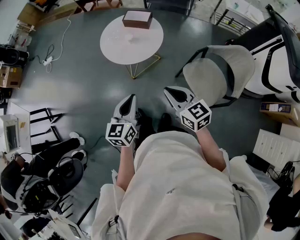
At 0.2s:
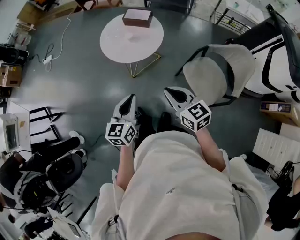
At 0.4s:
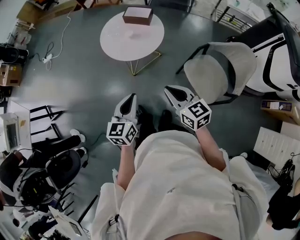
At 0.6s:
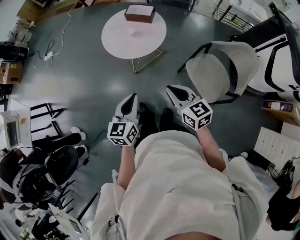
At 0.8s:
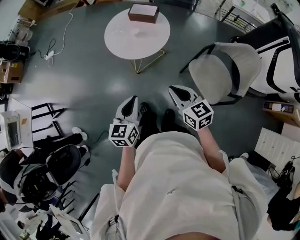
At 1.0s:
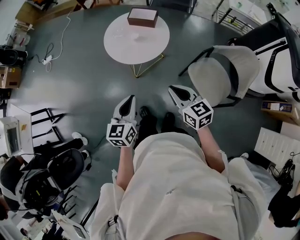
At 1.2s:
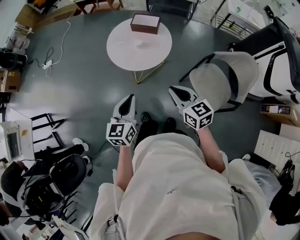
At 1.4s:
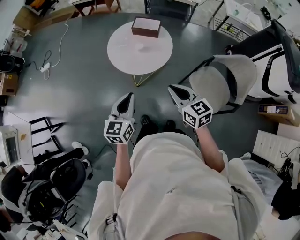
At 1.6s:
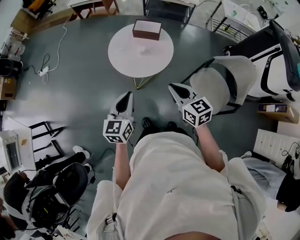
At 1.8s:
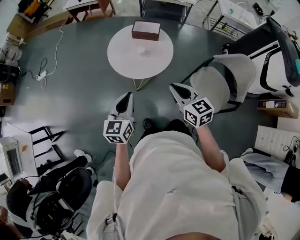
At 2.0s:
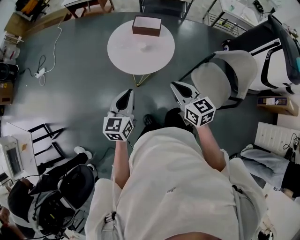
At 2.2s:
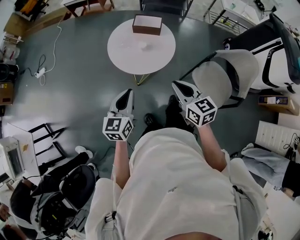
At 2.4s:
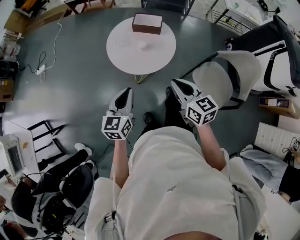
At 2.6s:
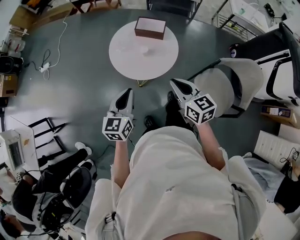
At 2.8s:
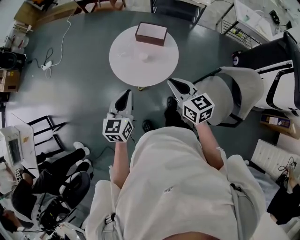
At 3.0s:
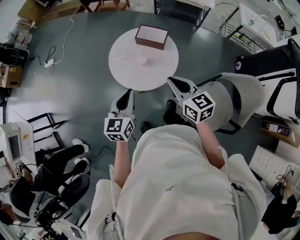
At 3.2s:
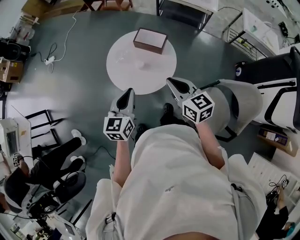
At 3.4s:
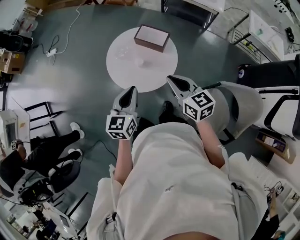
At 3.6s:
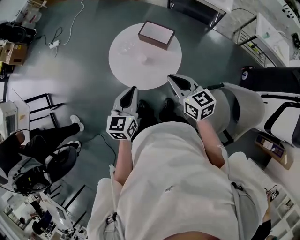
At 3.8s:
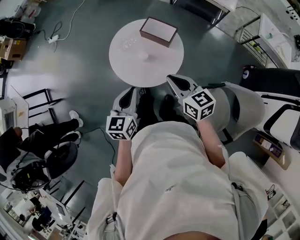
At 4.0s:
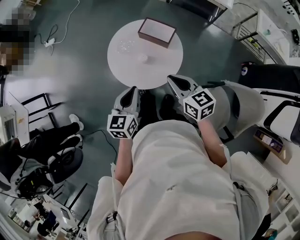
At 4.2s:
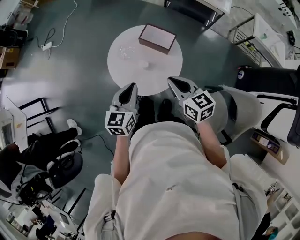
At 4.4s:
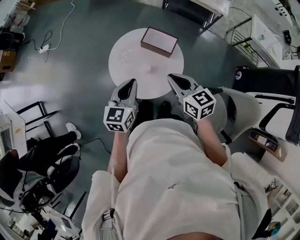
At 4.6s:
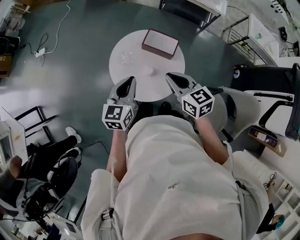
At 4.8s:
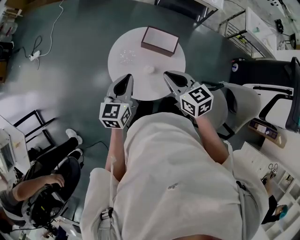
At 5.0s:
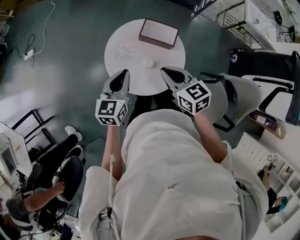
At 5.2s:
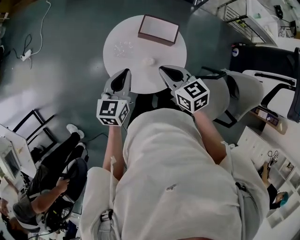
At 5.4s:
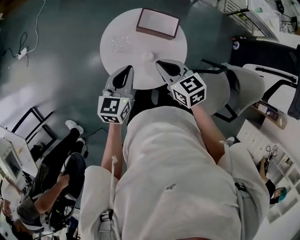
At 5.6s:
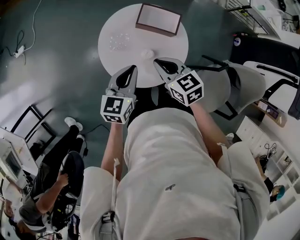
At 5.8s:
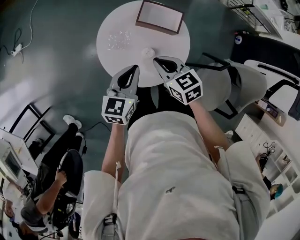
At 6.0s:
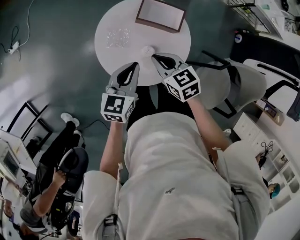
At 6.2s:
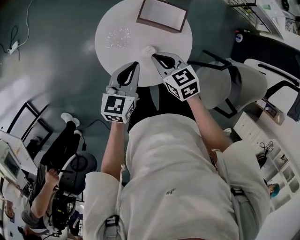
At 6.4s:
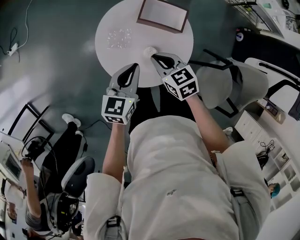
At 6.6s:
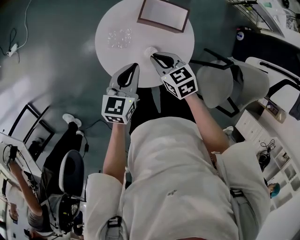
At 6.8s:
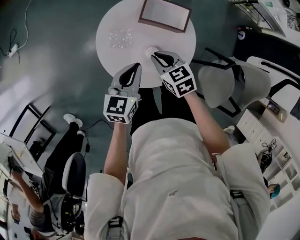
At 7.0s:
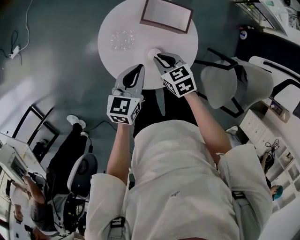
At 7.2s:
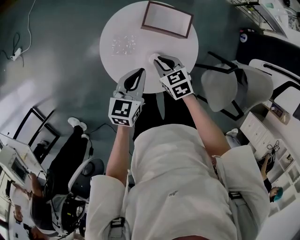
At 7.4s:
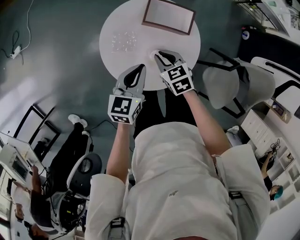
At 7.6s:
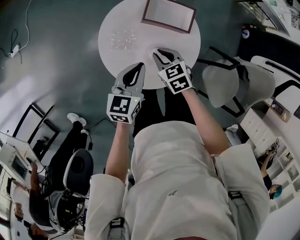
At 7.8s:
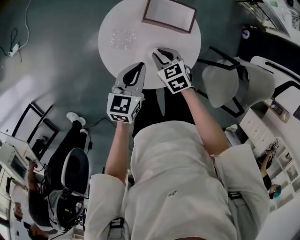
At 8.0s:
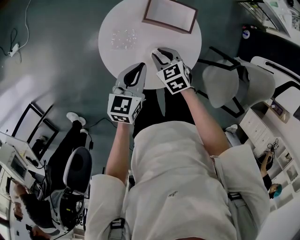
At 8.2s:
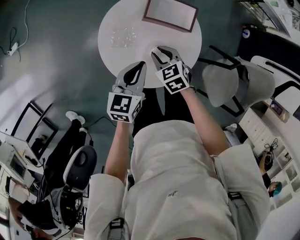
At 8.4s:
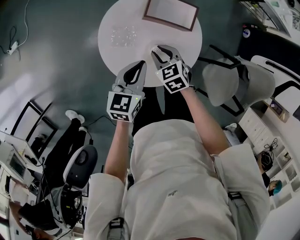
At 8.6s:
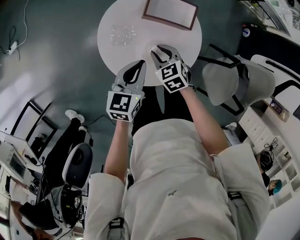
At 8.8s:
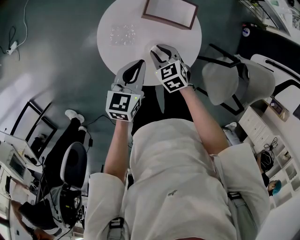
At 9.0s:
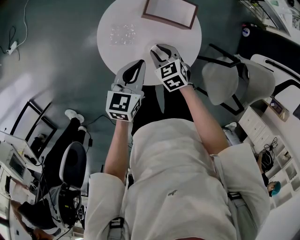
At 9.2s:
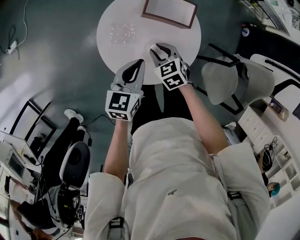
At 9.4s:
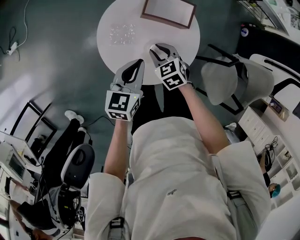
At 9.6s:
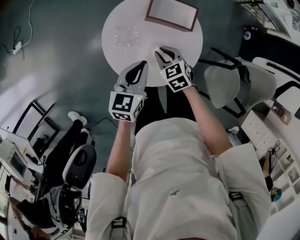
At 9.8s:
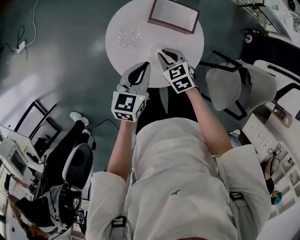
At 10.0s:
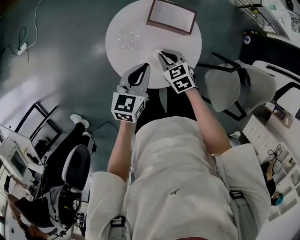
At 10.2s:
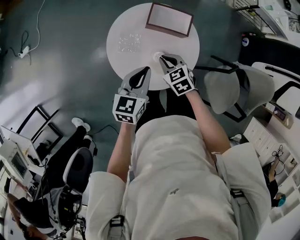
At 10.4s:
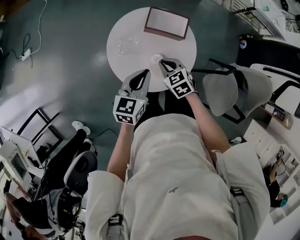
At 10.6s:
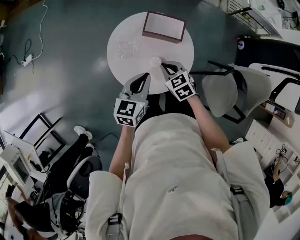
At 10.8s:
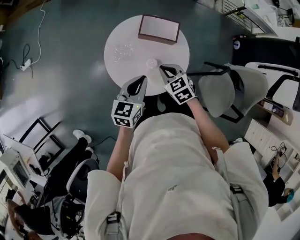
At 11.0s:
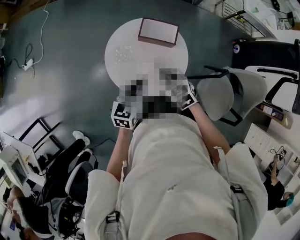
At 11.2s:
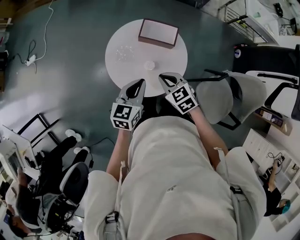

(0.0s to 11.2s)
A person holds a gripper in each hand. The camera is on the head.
0.0s - 1.6s: Both grippers move forward and to the left, roughly 15 cm.
1.6s - 3.2s: The grippers both shift forward and to the right by some 20 cm.
3.2s - 4.8s: The left gripper goes roughly 15 cm forward. The right gripper travels forward and to the left by about 15 cm.
4.8s - 6.4s: The left gripper heads downward, covering roughly 10 cm. Meanwhile the right gripper goes about 15 cm downward.
6.4s - 8.0s: The right gripper shifts approximately 10 cm downward.
8.0s - 9.6s: The grippers make only small movements.
9.6s - 11.2s: The right gripper travels upward and backward by approximately 15 cm. Meanwhile the left gripper travels upward and backward by approximately 10 cm.

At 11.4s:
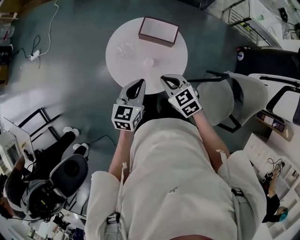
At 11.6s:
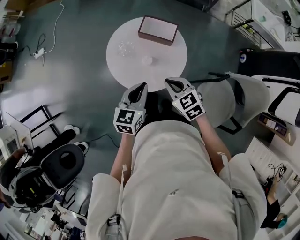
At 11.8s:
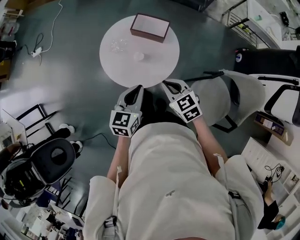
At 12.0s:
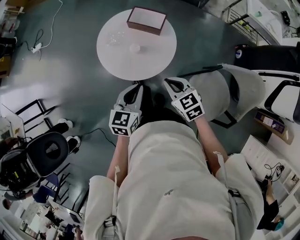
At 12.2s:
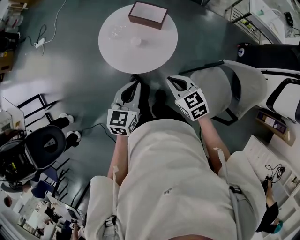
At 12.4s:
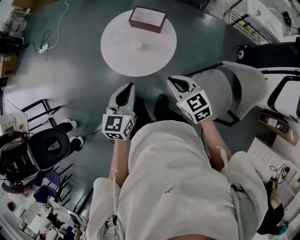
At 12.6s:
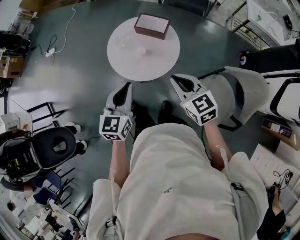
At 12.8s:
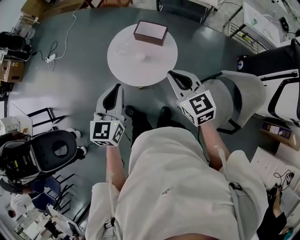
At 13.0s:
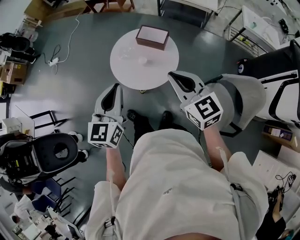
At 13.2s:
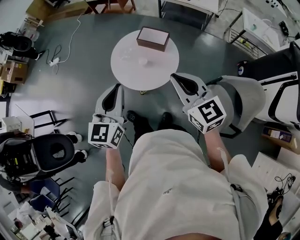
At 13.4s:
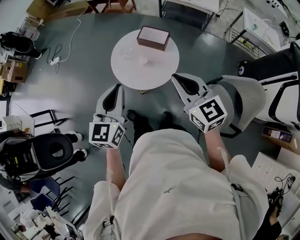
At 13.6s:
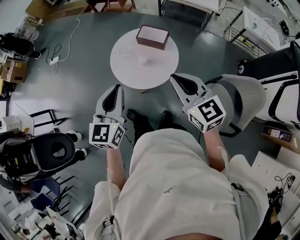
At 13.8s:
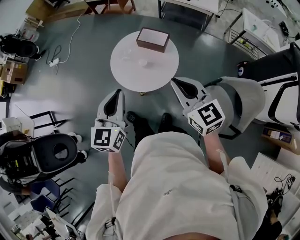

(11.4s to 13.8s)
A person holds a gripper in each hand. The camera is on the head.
11.4s - 12.6s: The right gripper moves backward, upward and to the right, about 20 cm; the left gripper shifts approximately 20 cm backward and upward.
12.6s - 13.8s: The grippers both shift upward by some 10 cm.

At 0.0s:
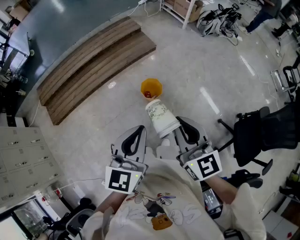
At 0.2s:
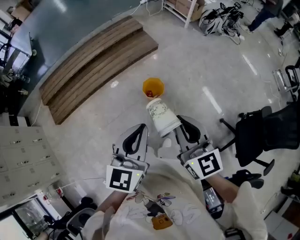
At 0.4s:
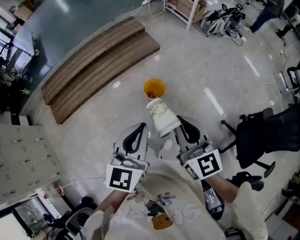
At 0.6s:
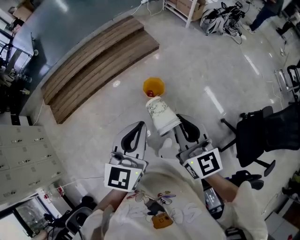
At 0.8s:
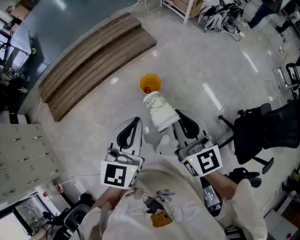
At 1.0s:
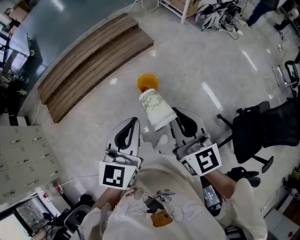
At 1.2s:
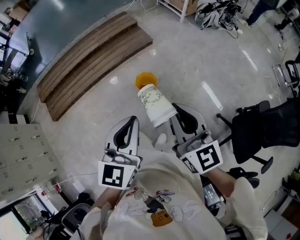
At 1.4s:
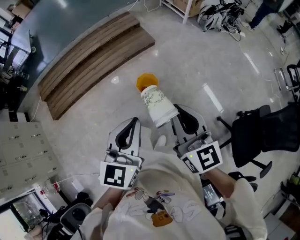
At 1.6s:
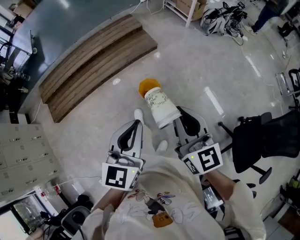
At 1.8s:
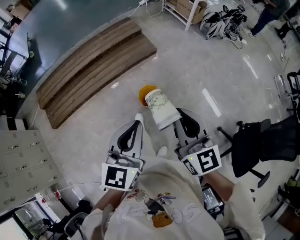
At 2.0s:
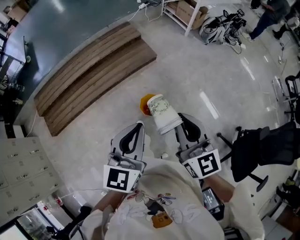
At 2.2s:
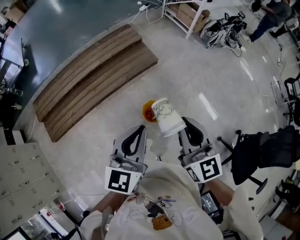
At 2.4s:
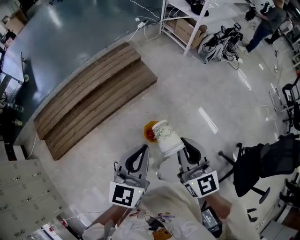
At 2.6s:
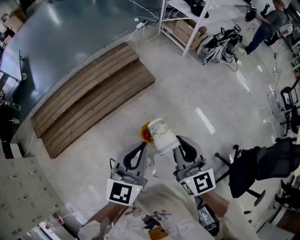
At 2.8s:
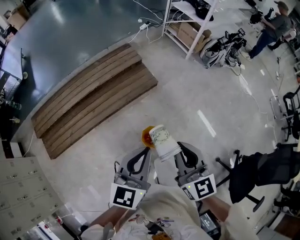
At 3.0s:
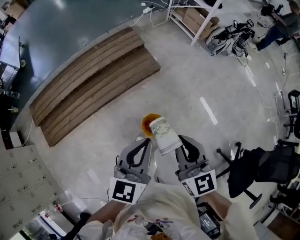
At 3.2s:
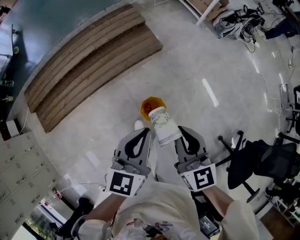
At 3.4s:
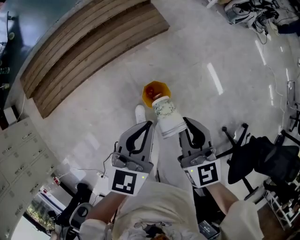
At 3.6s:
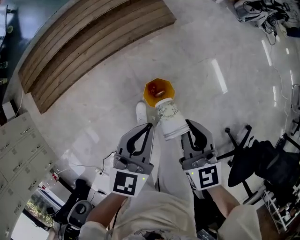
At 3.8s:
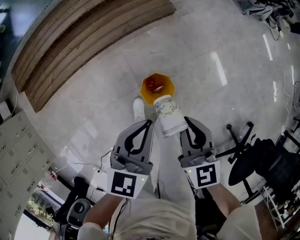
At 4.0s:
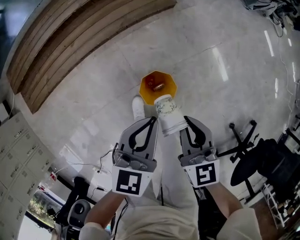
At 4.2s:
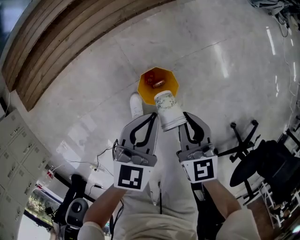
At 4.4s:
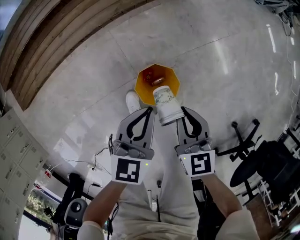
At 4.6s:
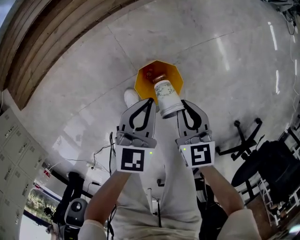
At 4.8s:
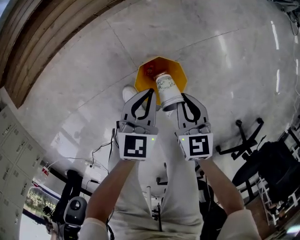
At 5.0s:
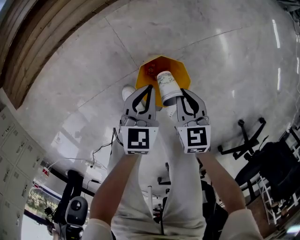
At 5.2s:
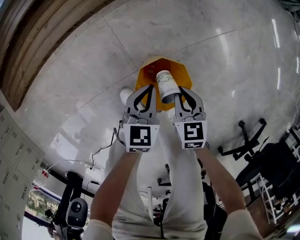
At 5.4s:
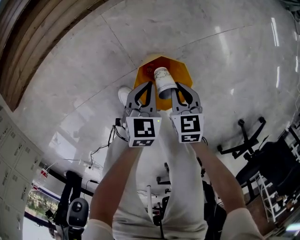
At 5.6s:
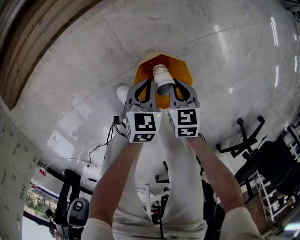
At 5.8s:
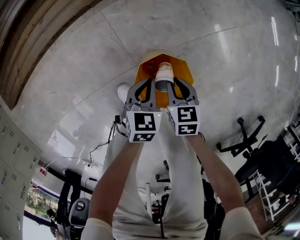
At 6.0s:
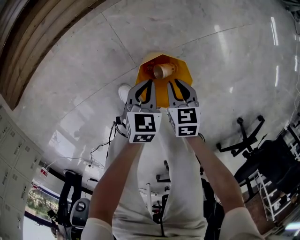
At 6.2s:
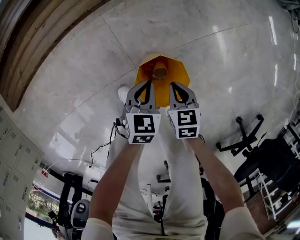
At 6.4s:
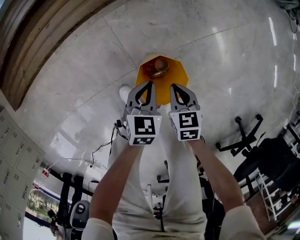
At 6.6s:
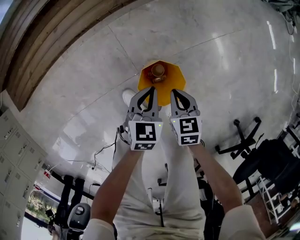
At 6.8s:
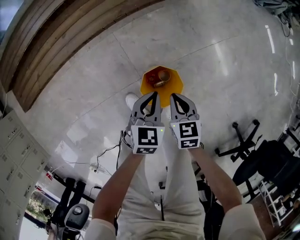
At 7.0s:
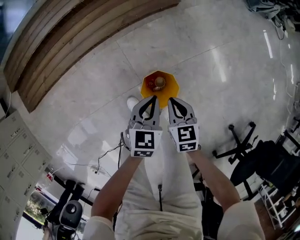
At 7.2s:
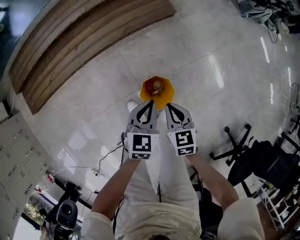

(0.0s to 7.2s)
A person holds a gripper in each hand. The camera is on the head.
0.0s - 1.4s: The two grippers go some 10 cm to the right.
1.4s - 2.8s: The grippers both shift forward by approximately 35 cm.
2.8s - 4.4s: Both grippers move downward, roughly 60 cm. The left gripper changes its angle by roughly 20 degrees; the right gripper rotates roughly 30 degrees.
4.4s - 5.8s: The grippers both shift downward by approximately 30 cm. The right gripper turns by some 20 degrees.
5.8s - 7.2s: Both grippers move upward, about 35 cm.

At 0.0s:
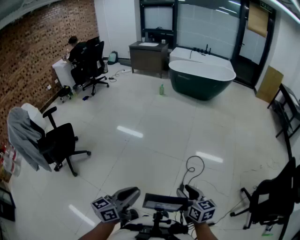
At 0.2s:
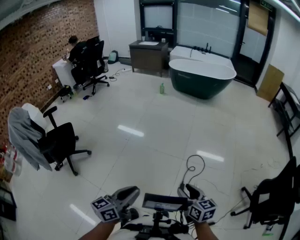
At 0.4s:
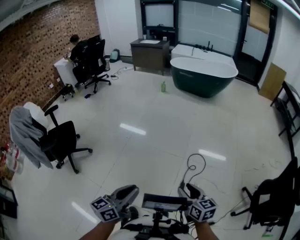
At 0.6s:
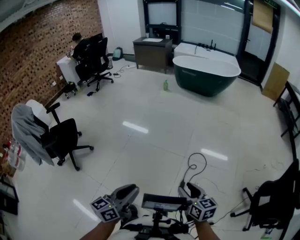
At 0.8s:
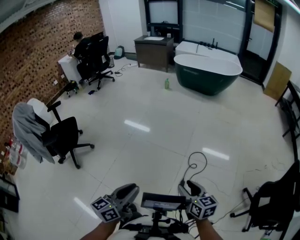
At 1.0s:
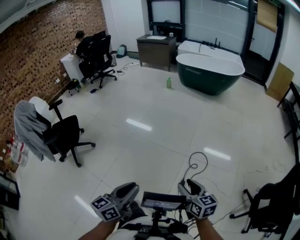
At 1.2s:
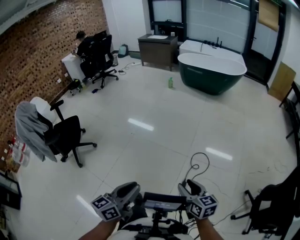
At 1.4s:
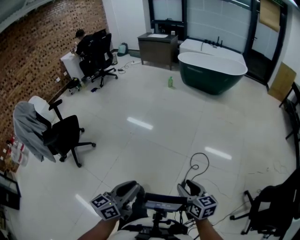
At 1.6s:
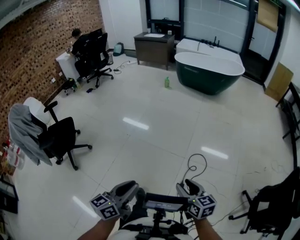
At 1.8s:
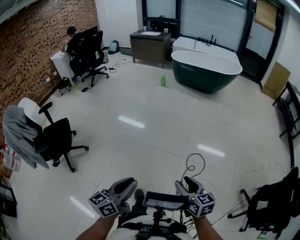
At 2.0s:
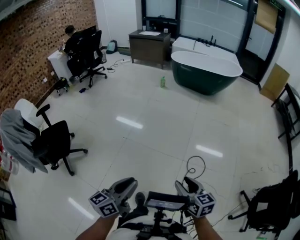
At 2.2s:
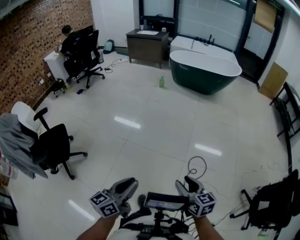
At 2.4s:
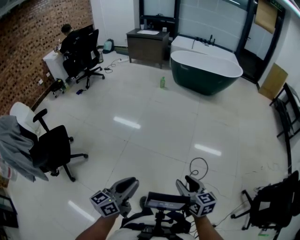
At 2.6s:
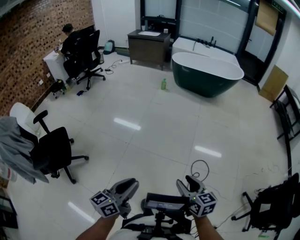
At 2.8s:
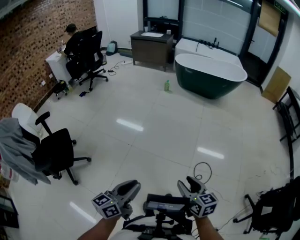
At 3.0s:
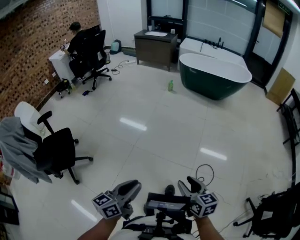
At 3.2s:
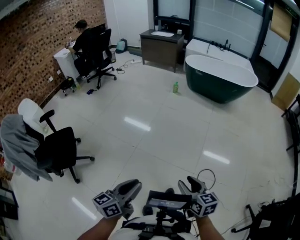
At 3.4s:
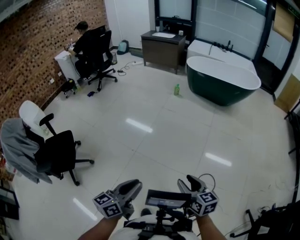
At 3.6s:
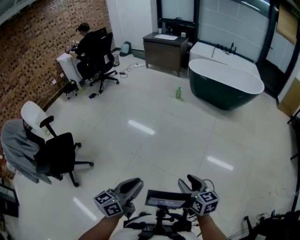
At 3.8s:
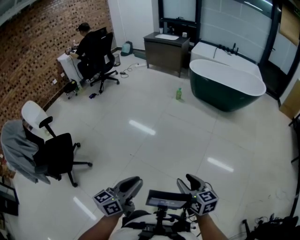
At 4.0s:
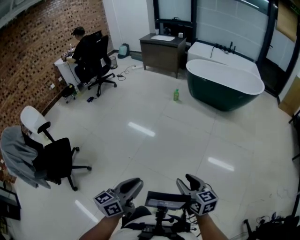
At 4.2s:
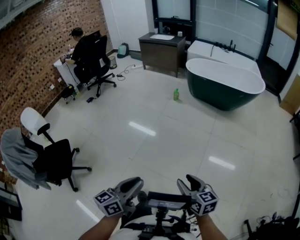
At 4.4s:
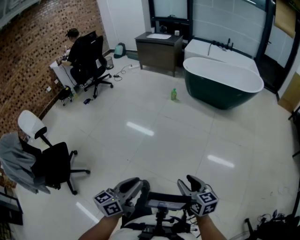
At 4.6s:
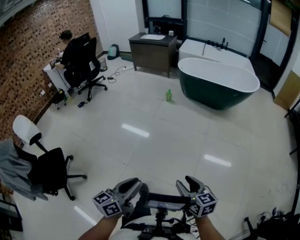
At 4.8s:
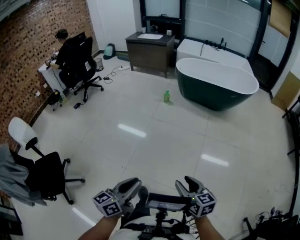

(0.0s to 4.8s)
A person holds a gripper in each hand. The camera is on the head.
0.0s - 1.6s: Both grippers travel together forward, approximately 5 cm.
1.6s - 3.2s: Both grippers travel together forward and to the left, roughly 25 cm.
3.2s - 4.8s: The two grippers go about 25 cm forward.
